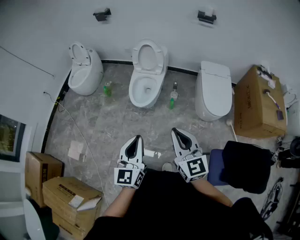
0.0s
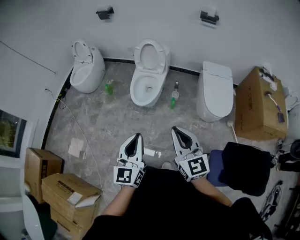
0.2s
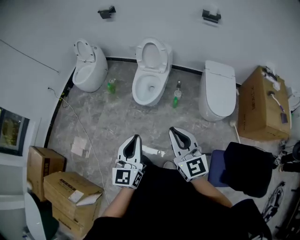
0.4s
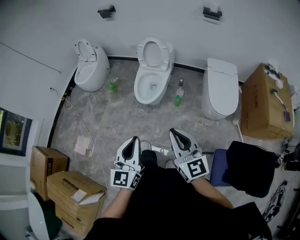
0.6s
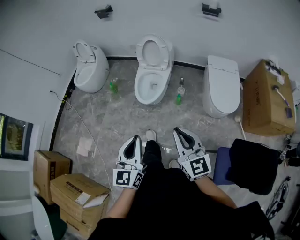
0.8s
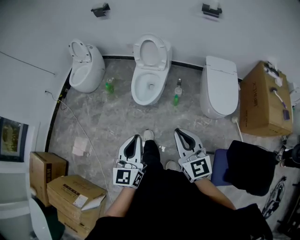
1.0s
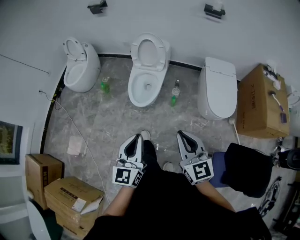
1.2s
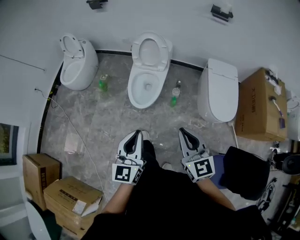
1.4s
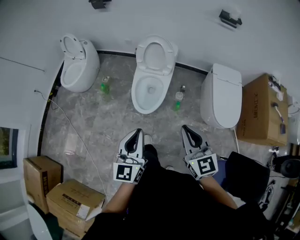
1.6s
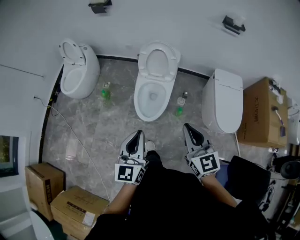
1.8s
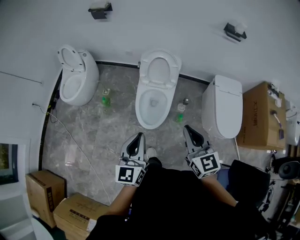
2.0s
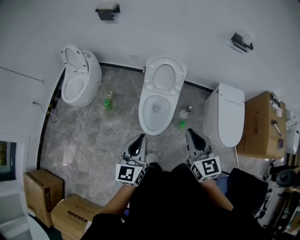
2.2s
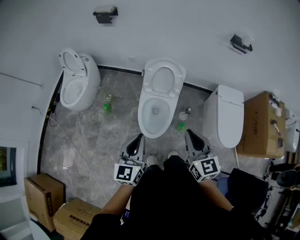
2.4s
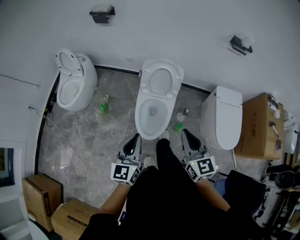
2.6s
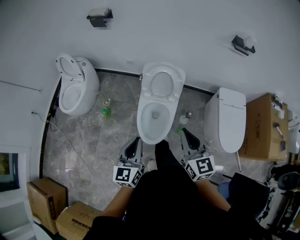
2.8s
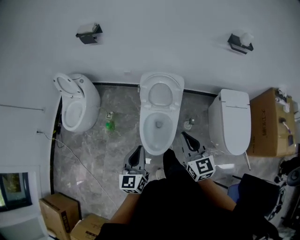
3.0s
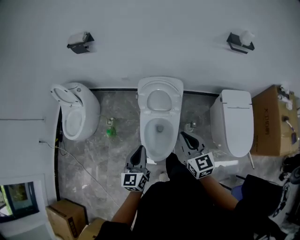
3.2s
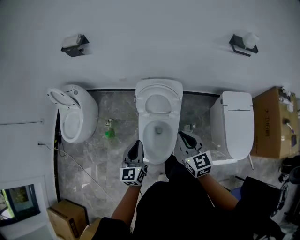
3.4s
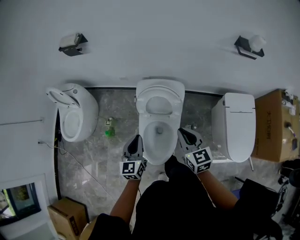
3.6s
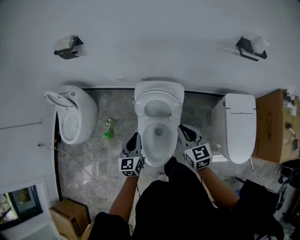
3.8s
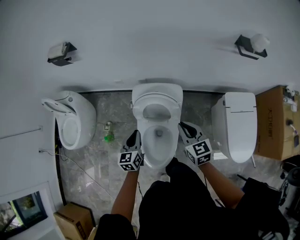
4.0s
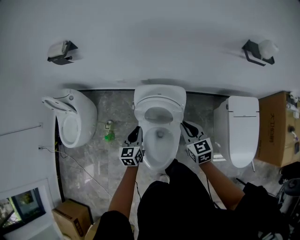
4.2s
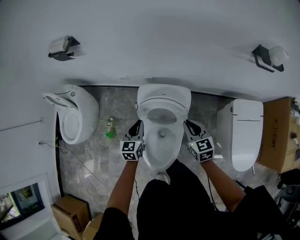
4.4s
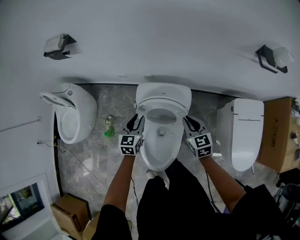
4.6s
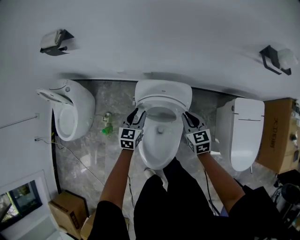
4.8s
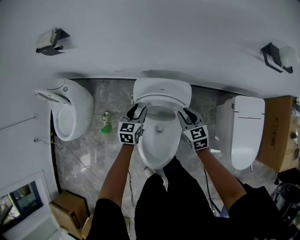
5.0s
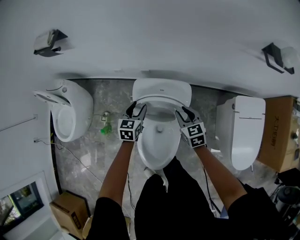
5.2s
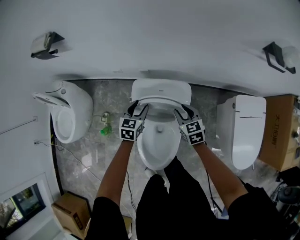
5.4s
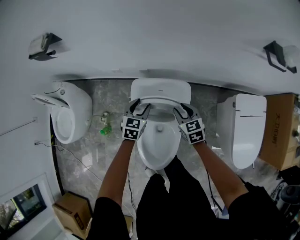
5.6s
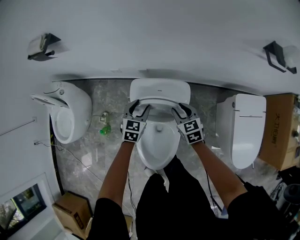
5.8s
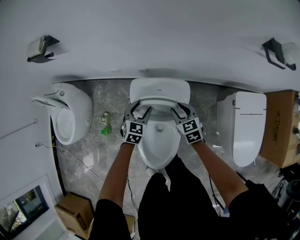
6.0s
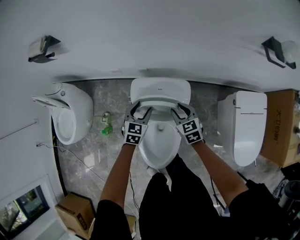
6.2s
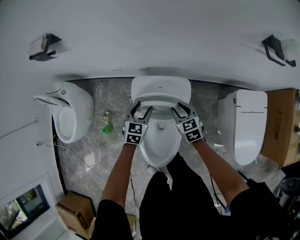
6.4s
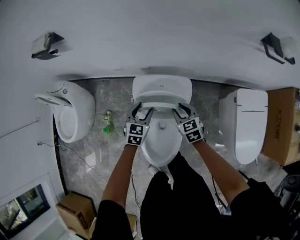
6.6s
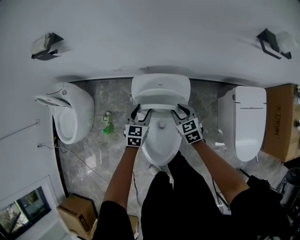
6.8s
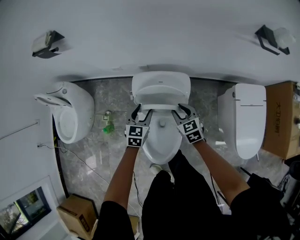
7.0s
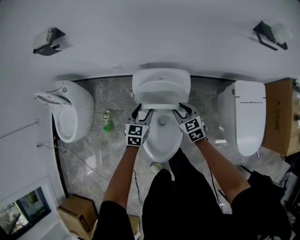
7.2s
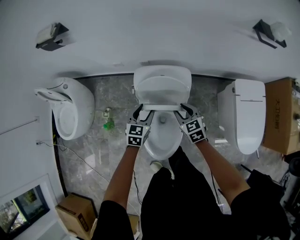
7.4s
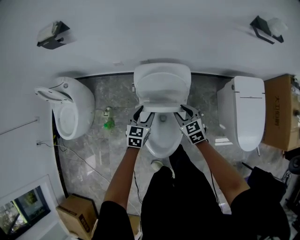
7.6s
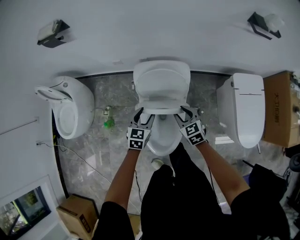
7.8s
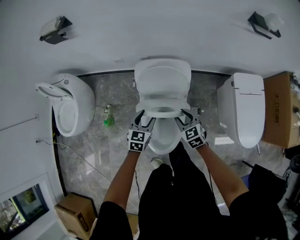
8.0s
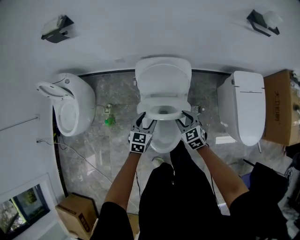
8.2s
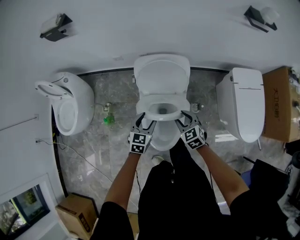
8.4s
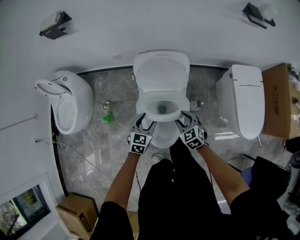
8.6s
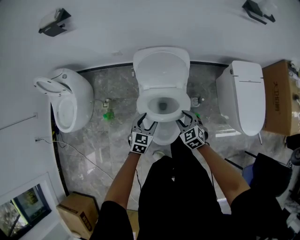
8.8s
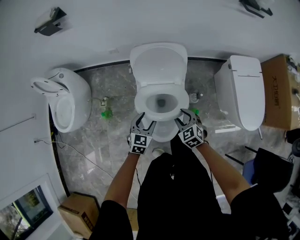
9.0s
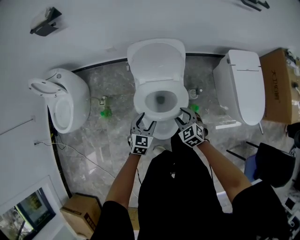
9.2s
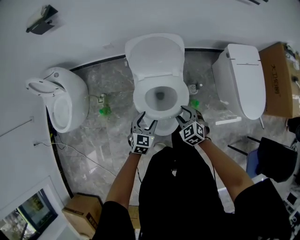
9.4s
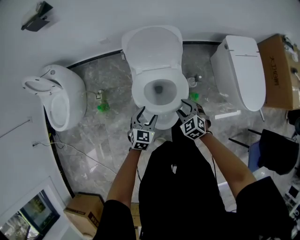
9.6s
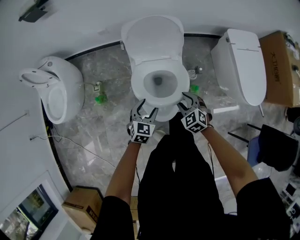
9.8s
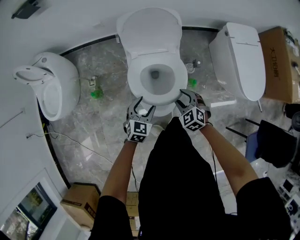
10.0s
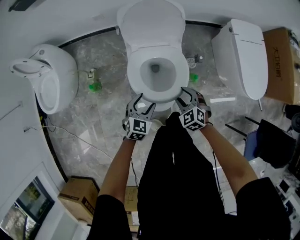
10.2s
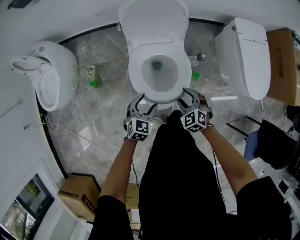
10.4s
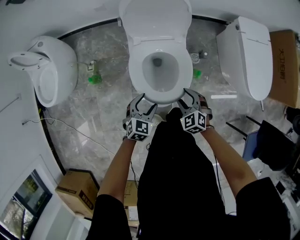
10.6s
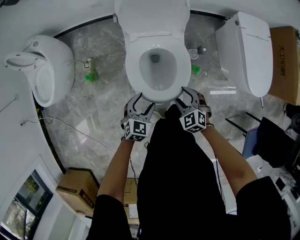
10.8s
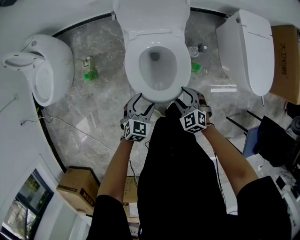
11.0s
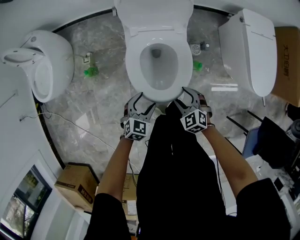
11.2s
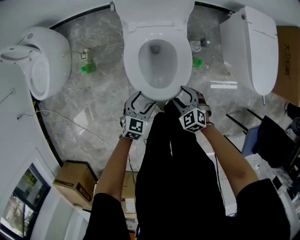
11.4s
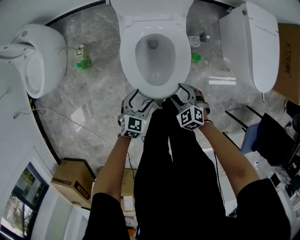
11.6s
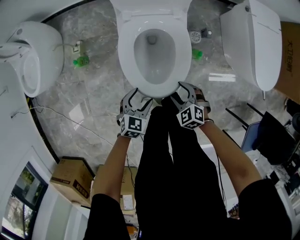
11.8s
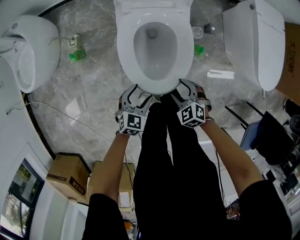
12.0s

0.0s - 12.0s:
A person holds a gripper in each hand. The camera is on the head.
0.0s - 1.6s: Both grippers travel together forward, about 25 cm.
1.6s - 3.0s: The two grippers go roughly 30 cm forward.
3.0s - 4.4s: Both grippers move forward and downward, some 40 cm.
4.4s - 6.0s: The right gripper goes about 15 cm downward and forward, and opens. Meanwhile the left gripper is displaced forward, downward and to the right by about 15 cm, changes its angle by some 30 degrees, and opens its fingers.
6.0s - 7.6s: The two grippers go roughly 15 cm backward.
7.6s - 9.0s: The grippers both shift backward by roughly 15 cm.
9.0s - 10.4s: The two grippers go about 15 cm backward and downward.
10.4s - 12.0s: The two grippers go roughly 15 cm downward and backward.

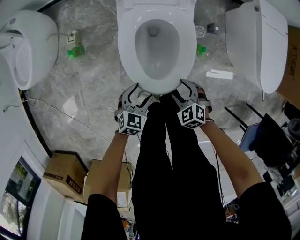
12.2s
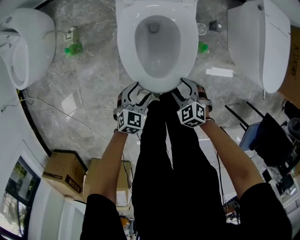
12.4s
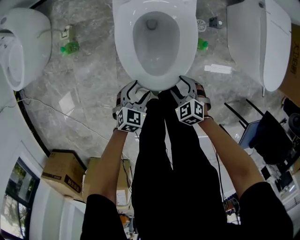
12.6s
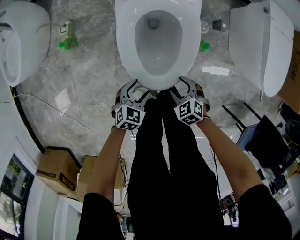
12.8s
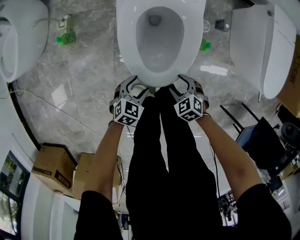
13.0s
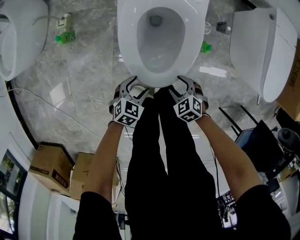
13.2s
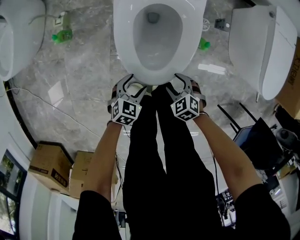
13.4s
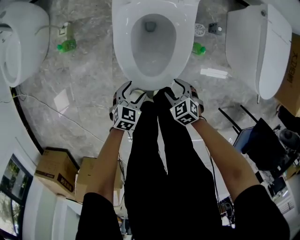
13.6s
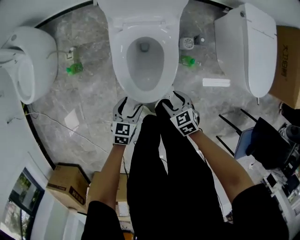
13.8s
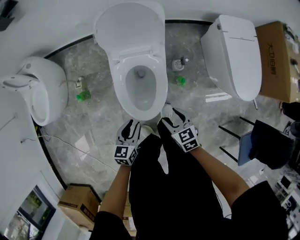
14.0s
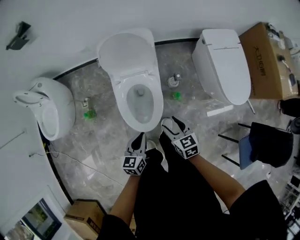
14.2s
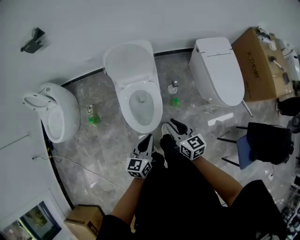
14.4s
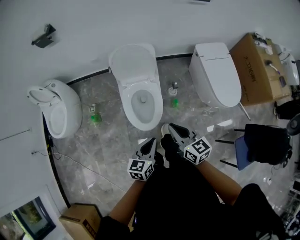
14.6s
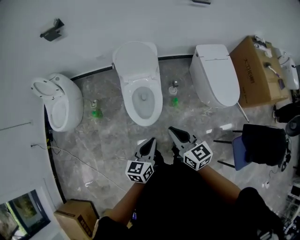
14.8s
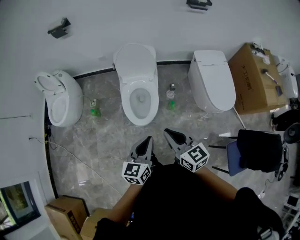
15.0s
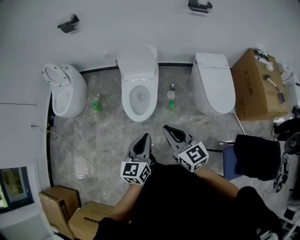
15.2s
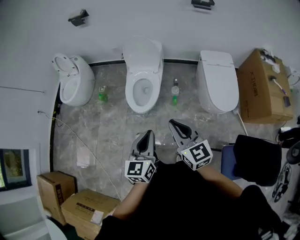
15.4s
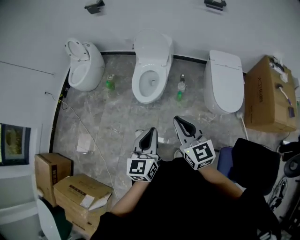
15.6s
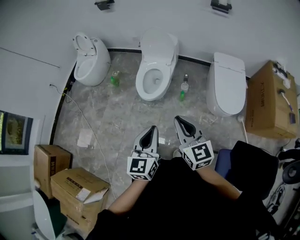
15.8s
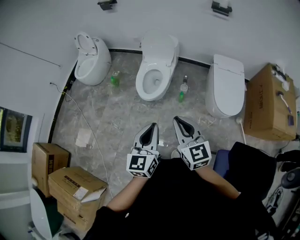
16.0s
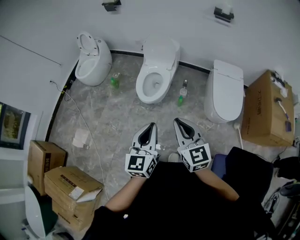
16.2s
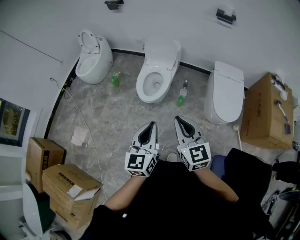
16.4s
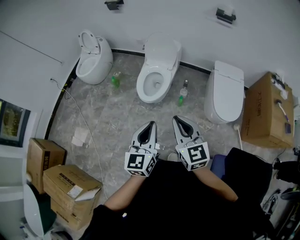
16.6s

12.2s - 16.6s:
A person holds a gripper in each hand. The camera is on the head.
12.2s - 13.6s: Both grippers move downward, some 5 cm.
13.6s - 15.2s: The grippers both shift upward by some 60 cm. The left gripper points its fingers some 40 degrees further upward, and closes its fingers. The right gripper points its fingers some 50 degrees further upward, and closes up.
15.2s - 16.6s: The left gripper travels backward and upward by some 20 cm, and swivels about 20 degrees. Meanwhile the right gripper moves backward, some 20 cm.

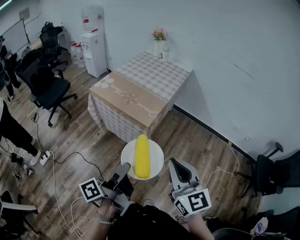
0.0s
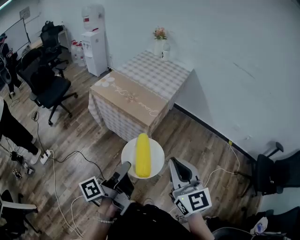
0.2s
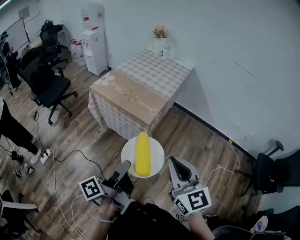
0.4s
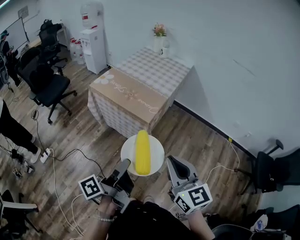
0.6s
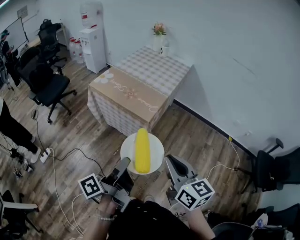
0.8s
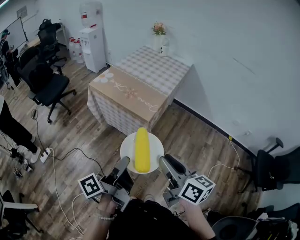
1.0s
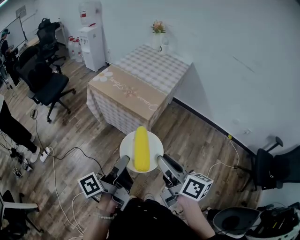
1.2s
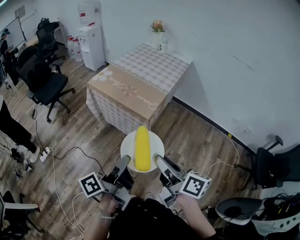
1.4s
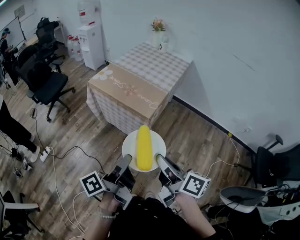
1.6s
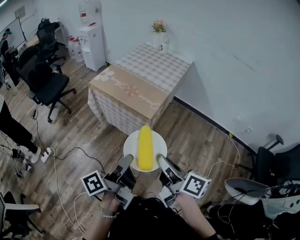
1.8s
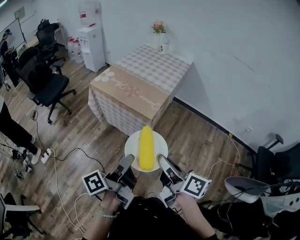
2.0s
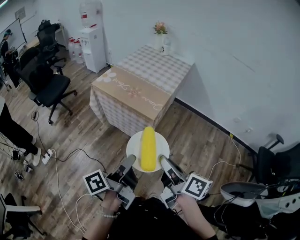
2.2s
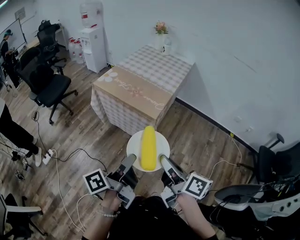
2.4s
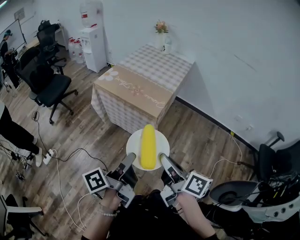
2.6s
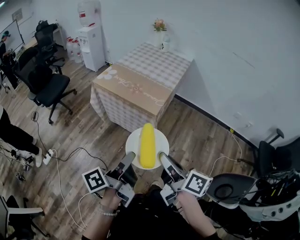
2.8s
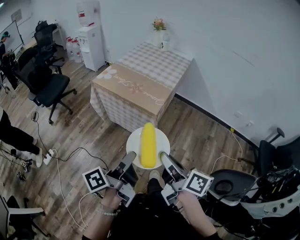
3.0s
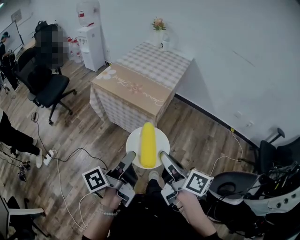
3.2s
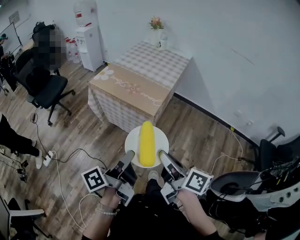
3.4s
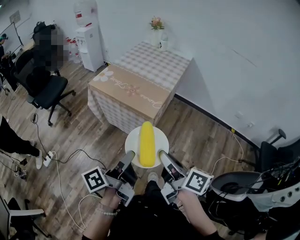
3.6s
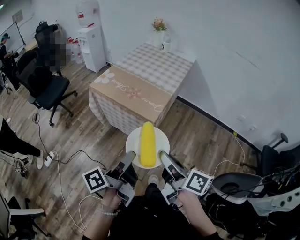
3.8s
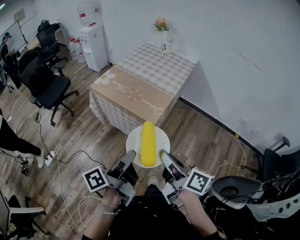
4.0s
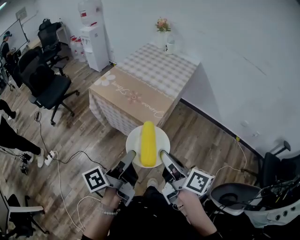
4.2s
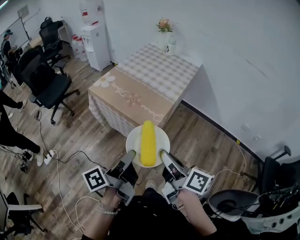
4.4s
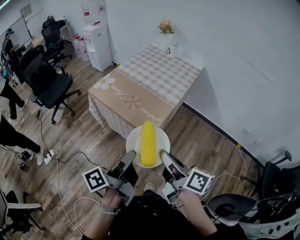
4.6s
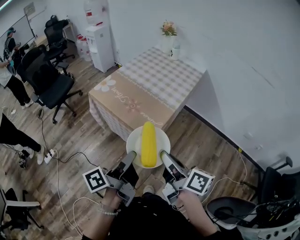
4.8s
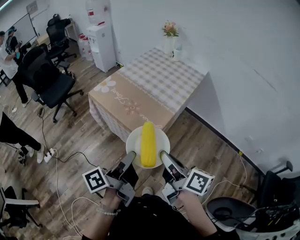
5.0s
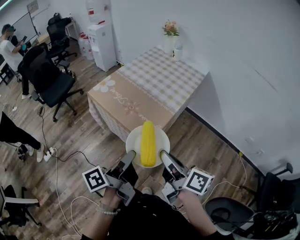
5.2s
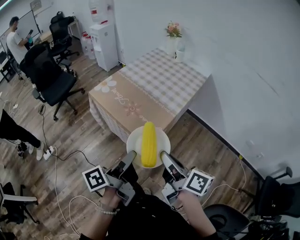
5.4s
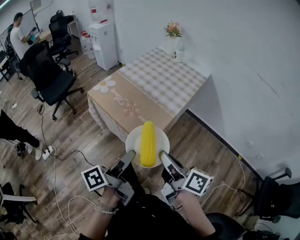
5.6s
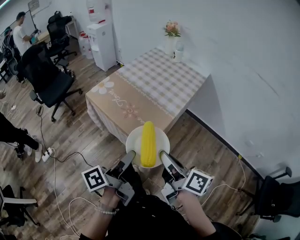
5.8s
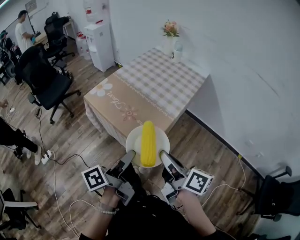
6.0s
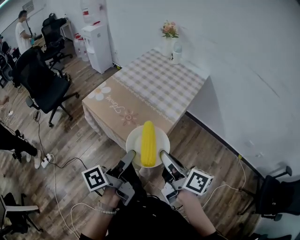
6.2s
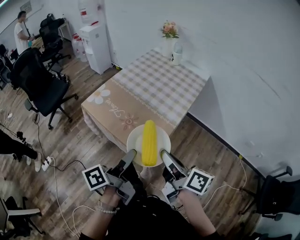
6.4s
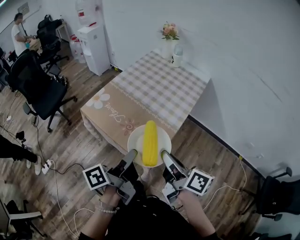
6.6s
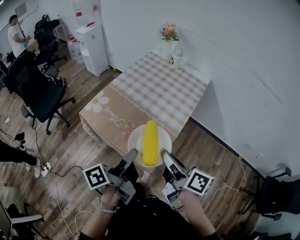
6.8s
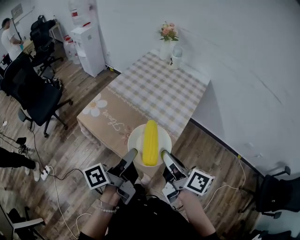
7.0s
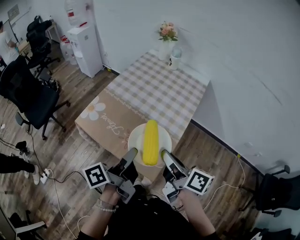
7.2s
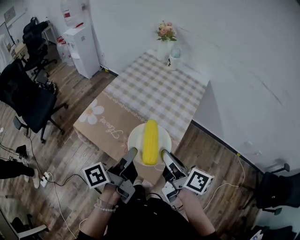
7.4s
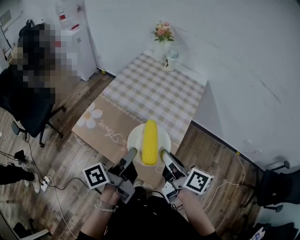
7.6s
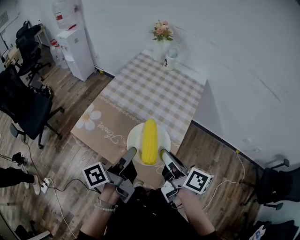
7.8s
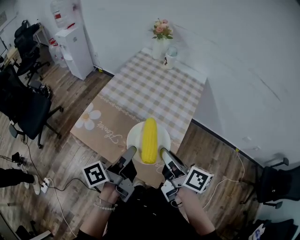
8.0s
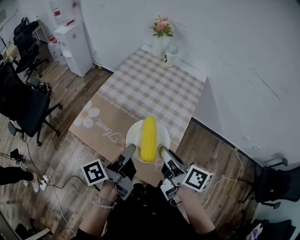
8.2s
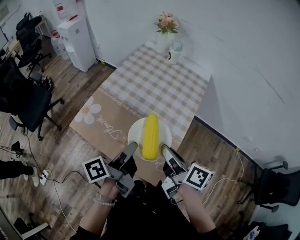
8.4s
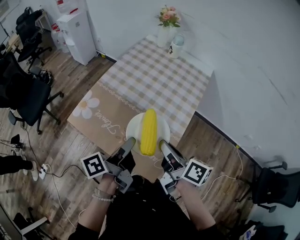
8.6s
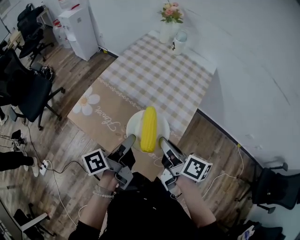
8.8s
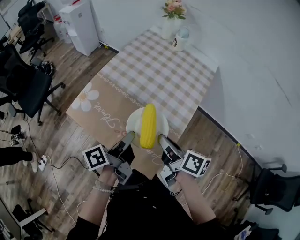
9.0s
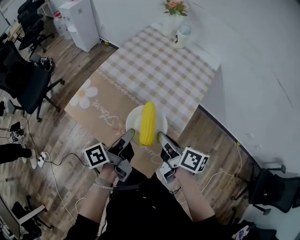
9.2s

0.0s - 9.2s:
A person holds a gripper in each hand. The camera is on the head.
0.0s - 1.6s: The right gripper goes some 5 cm downward, and twists some 60 degrees clockwise, seen from behind.
1.6s - 3.0s: The grippers move only a little.
3.0s - 4.6s: Both grippers travel together forward and to the right, some 20 cm.
4.6s - 6.2s: Both grippers travel together forward, some 15 cm.
6.2s - 7.6s: The two grippers go roughly 20 cm forward.
7.6s - 9.2s: Both grippers travel together downward and forward, roughly 10 cm.
